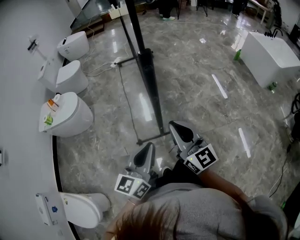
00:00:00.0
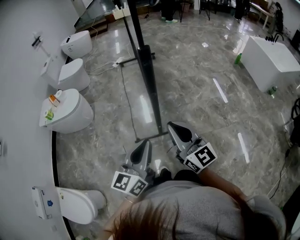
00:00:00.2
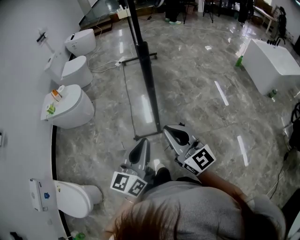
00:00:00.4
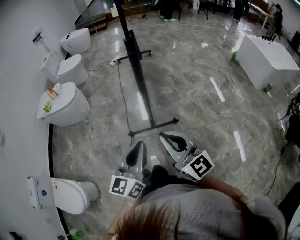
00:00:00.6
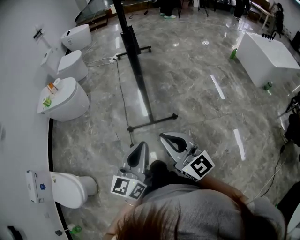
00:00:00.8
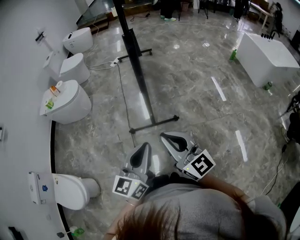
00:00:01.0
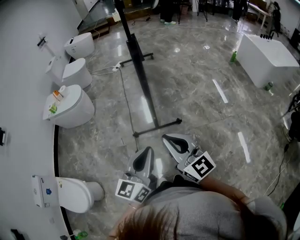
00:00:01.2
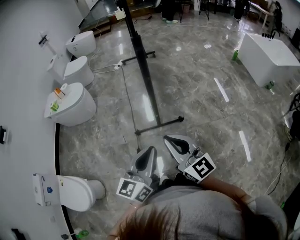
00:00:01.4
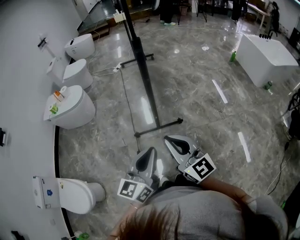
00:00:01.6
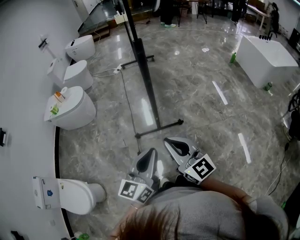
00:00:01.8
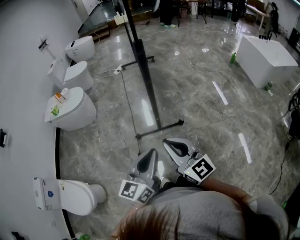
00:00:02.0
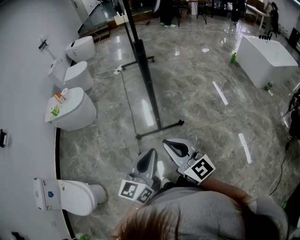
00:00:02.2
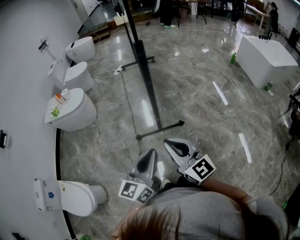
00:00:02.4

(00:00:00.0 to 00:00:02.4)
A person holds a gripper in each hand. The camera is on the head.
00:00:00.0 - 00:00:01.2: Both grippers move backward, about 20 cm.
00:00:01.2 - 00:00:02.4: There are only small adjustments of the grippers.

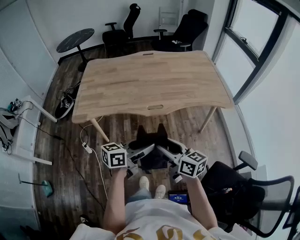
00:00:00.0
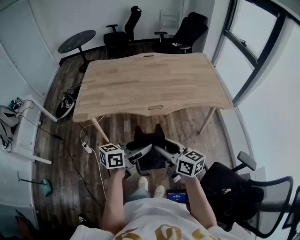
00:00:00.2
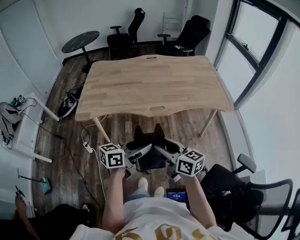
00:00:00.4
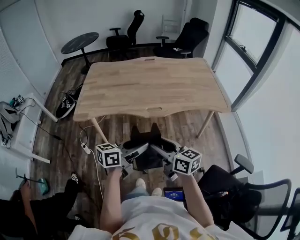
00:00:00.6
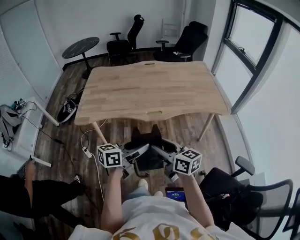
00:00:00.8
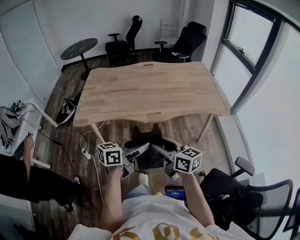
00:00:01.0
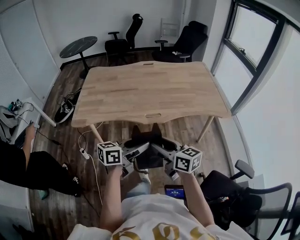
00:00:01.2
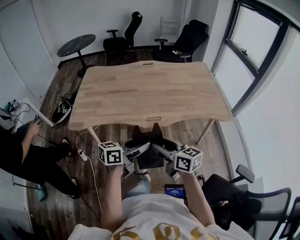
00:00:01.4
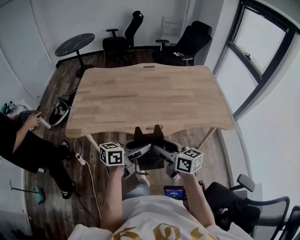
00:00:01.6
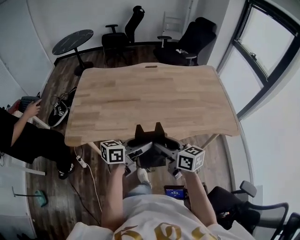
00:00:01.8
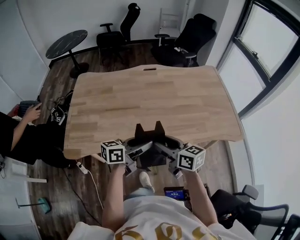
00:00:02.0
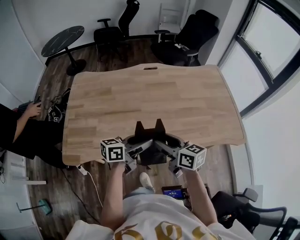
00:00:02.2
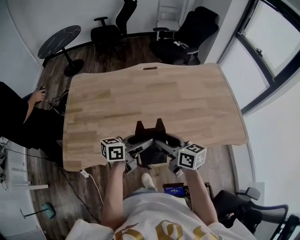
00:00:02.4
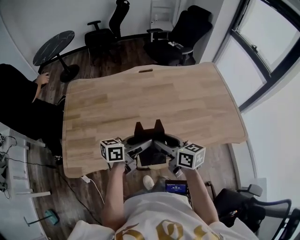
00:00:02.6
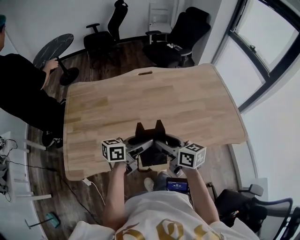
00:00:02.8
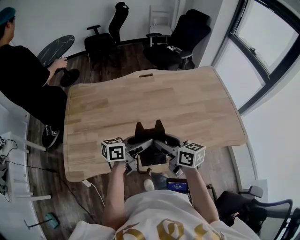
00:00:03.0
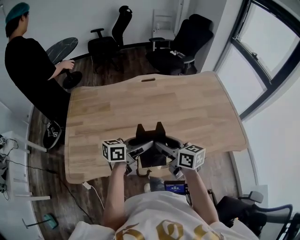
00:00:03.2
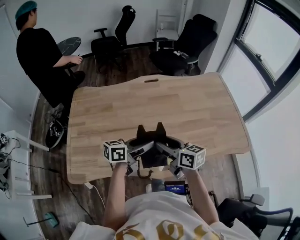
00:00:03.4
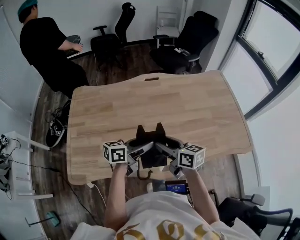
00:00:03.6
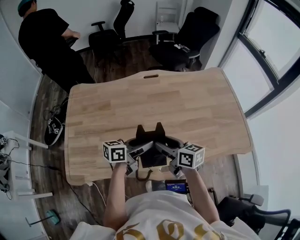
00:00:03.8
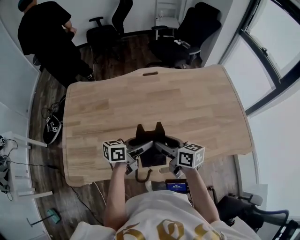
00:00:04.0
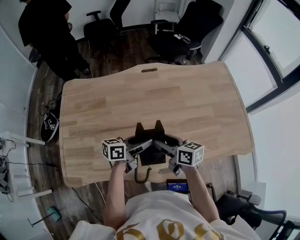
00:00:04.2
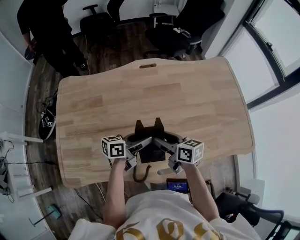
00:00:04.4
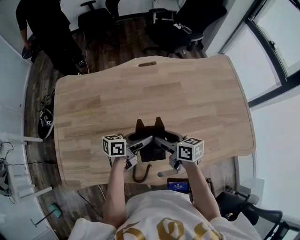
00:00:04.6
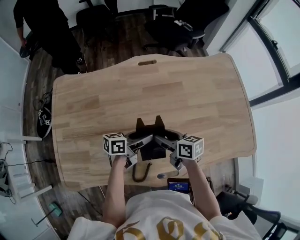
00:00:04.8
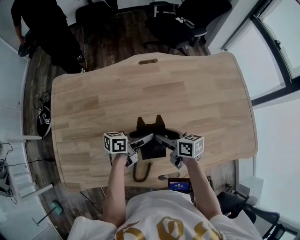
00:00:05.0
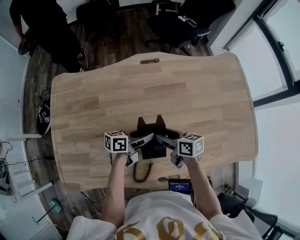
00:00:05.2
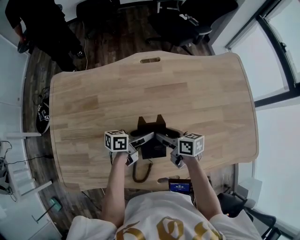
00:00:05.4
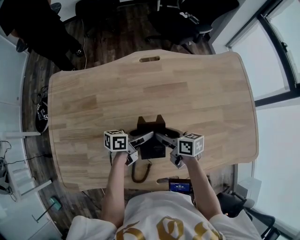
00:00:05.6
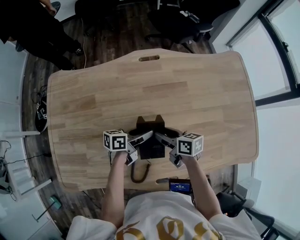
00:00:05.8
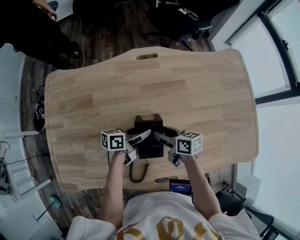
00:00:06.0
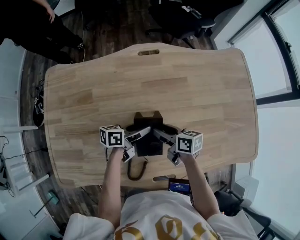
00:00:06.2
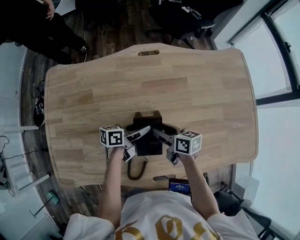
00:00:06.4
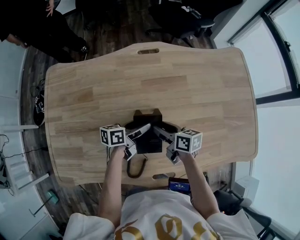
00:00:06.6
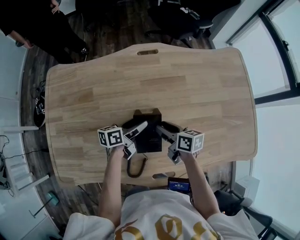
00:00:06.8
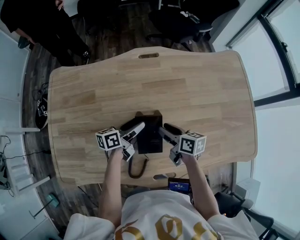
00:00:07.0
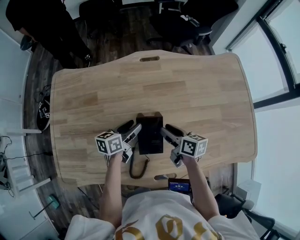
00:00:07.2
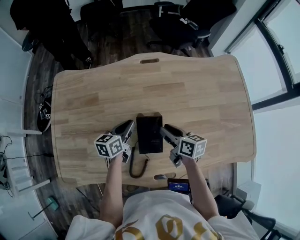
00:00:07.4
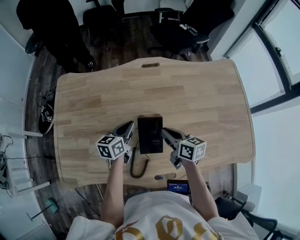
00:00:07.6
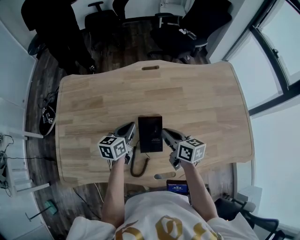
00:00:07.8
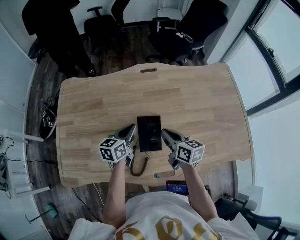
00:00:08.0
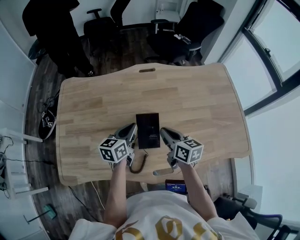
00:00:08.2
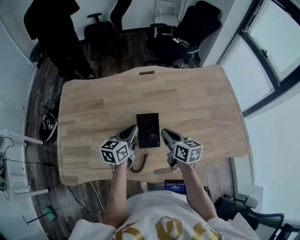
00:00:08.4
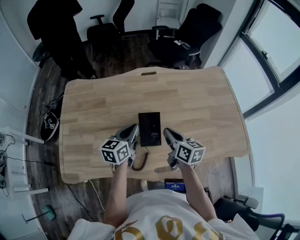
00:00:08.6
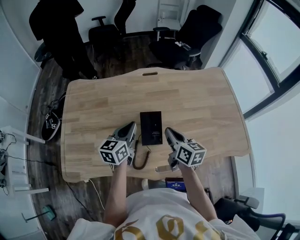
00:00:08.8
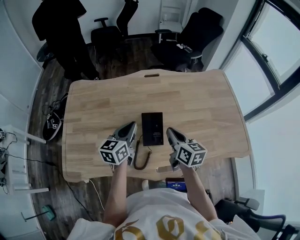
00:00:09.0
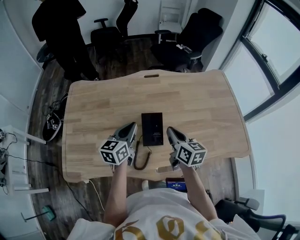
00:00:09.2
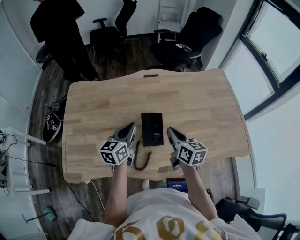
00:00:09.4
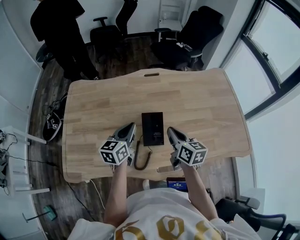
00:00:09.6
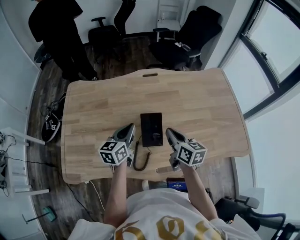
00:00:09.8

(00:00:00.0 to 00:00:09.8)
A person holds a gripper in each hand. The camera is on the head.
00:00:00.0 - 00:00:01.4: Both grippers move forward, roughly 5 cm.
00:00:01.4 - 00:00:02.8: The grippers both shift forward by some 35 cm.
00:00:02.8 - 00:00:04.2: The grippers both shift forward and downward by roughly 10 cm.
00:00:04.2 - 00:00:05.6: The right gripper heads downward and forward, covering roughly 15 cm. Meanwhile the left gripper heads forward and downward, covering roughly 15 cm.
00:00:05.6 - 00:00:07.0: The grippers make only small movements.
00:00:07.0 - 00:00:08.4: Both grippers travel together upward and backward, roughly 15 cm. The right gripper closes, while the left gripper turns by about 30 degrees, and closes up.
00:00:08.4 - 00:00:09.8: The grippers move only a little.

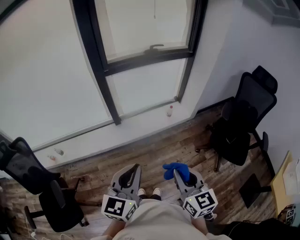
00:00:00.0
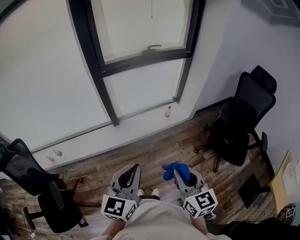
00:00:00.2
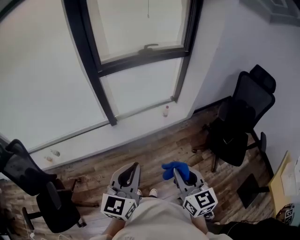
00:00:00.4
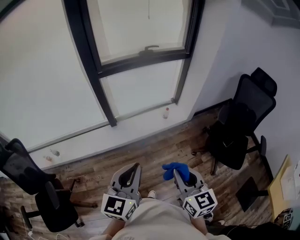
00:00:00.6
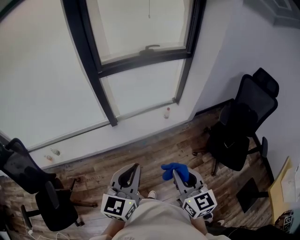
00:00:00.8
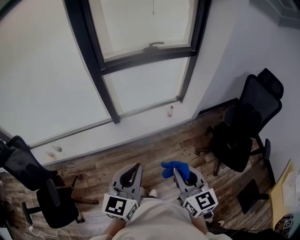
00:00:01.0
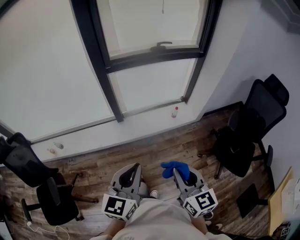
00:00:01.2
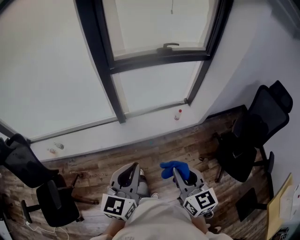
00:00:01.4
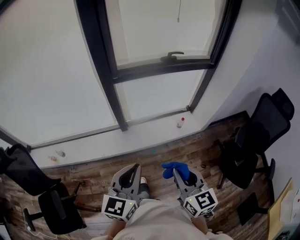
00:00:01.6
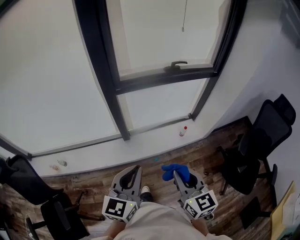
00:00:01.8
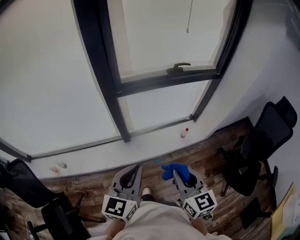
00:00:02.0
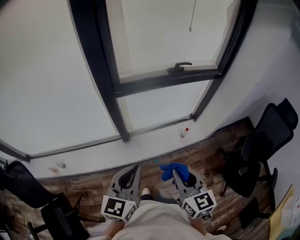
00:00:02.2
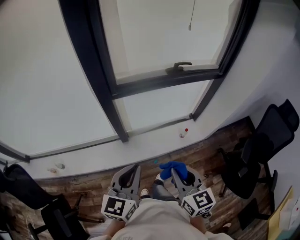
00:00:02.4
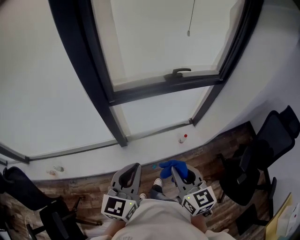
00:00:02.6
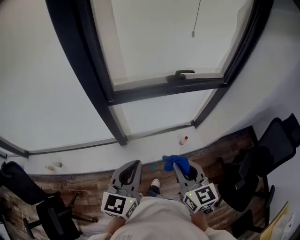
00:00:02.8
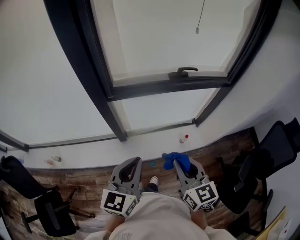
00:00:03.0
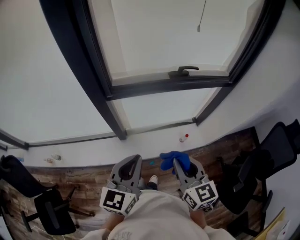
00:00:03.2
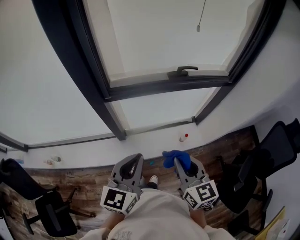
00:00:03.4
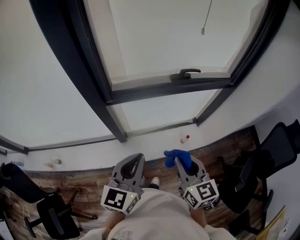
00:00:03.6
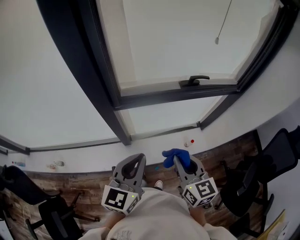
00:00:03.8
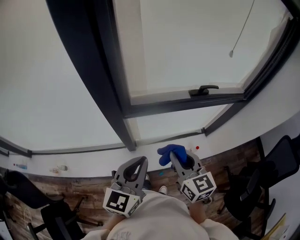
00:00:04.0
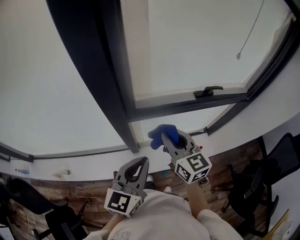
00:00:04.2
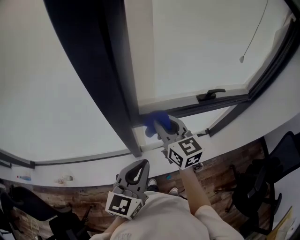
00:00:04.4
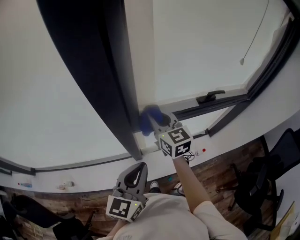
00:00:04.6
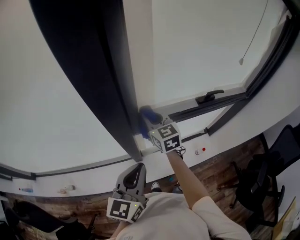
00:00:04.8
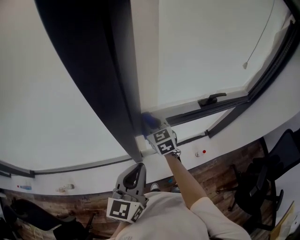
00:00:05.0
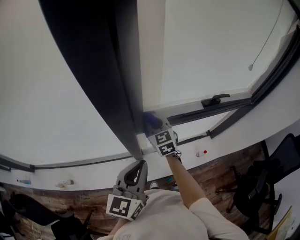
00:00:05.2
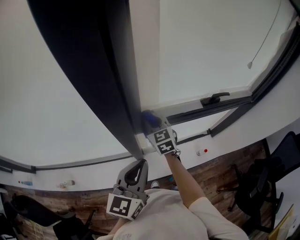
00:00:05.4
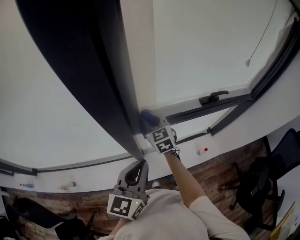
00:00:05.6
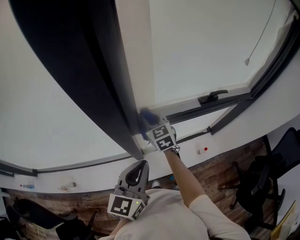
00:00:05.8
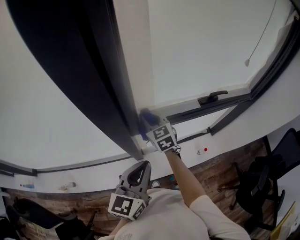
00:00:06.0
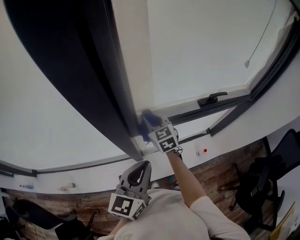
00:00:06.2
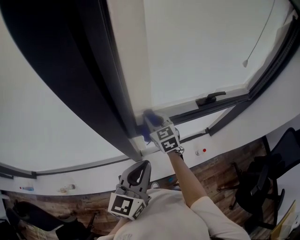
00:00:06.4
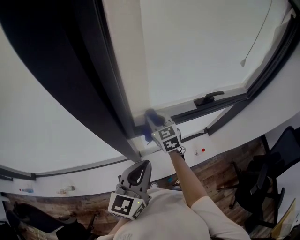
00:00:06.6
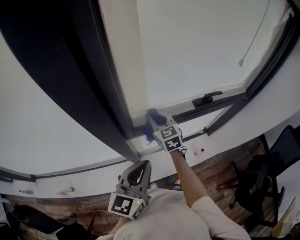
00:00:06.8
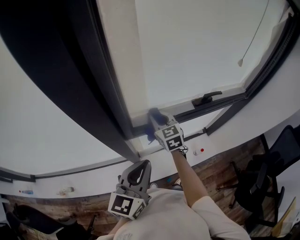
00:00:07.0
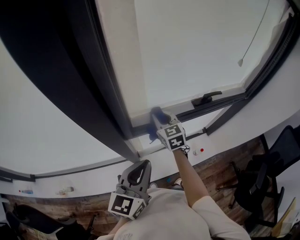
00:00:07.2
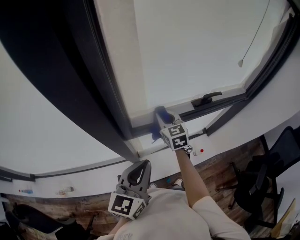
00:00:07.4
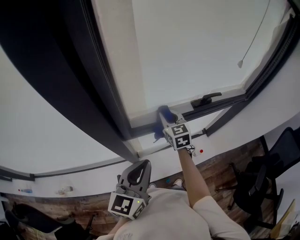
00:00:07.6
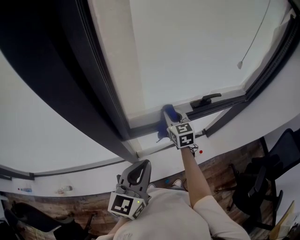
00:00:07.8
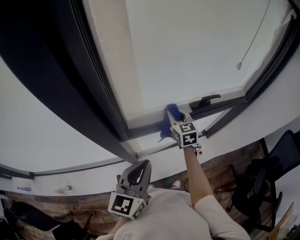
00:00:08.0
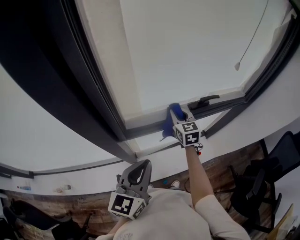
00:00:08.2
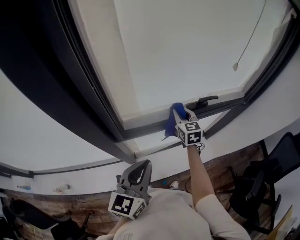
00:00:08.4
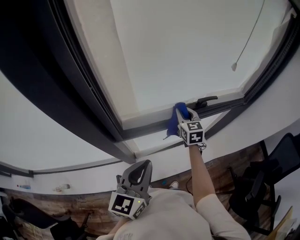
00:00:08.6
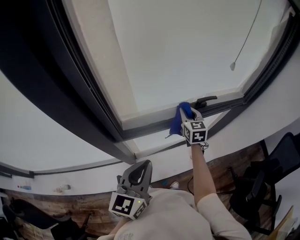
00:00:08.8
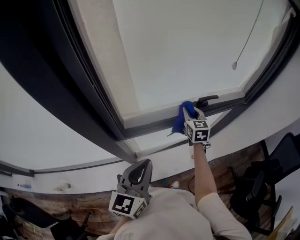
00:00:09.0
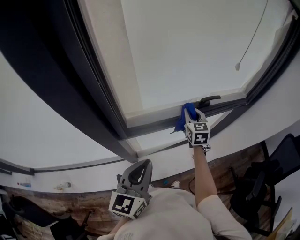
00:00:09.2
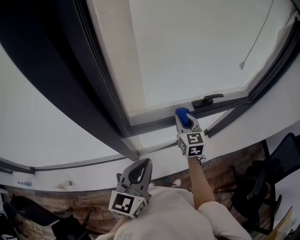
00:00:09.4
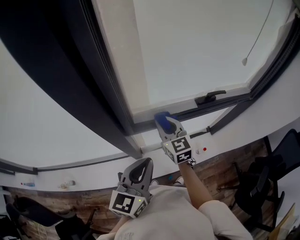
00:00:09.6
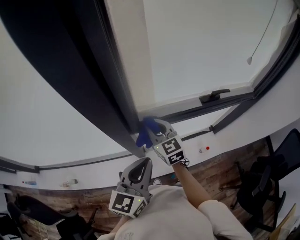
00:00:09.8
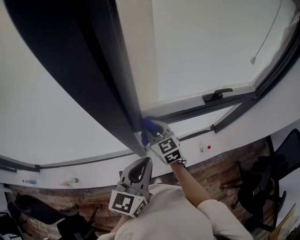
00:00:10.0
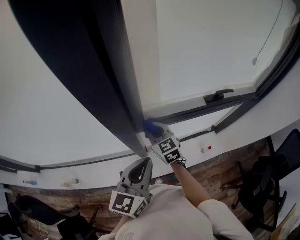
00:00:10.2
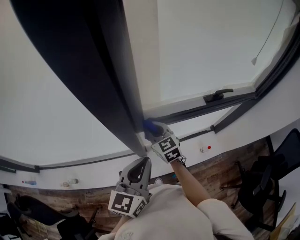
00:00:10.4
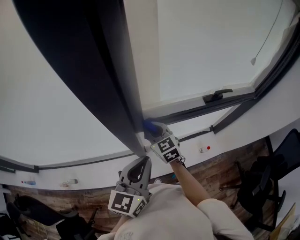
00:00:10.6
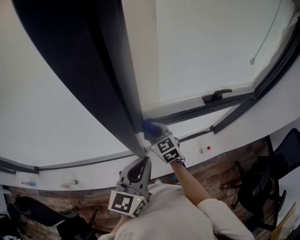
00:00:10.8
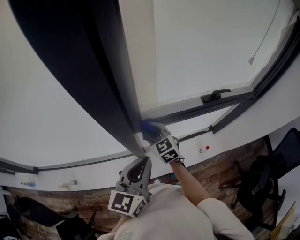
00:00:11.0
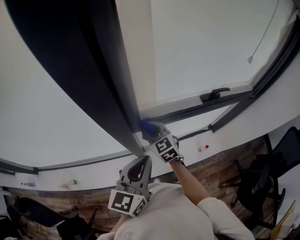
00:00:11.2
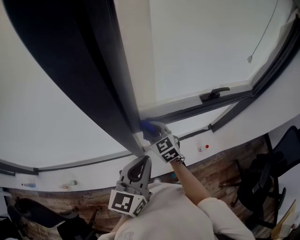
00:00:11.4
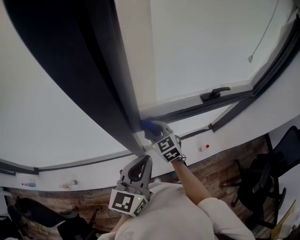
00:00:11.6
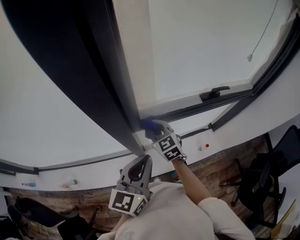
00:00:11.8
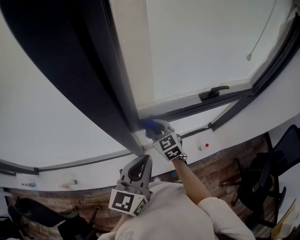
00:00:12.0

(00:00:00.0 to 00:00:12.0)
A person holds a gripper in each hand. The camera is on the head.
00:00:00.0 - 00:00:01.6: The grippers both shift forward by some 20 cm.
00:00:01.6 - 00:00:03.0: Both grippers move forward, about 25 cm.
00:00:03.0 - 00:00:04.4: The right gripper is displaced forward and to the left by about 35 cm. The left gripper heads forward and to the left, covering about 20 cm.
00:00:04.4 - 00:00:06.0: The right gripper travels downward and forward by about 15 cm.
00:00:06.0 - 00:00:07.6: The right gripper moves to the right, roughly 10 cm.
00:00:07.6 - 00:00:09.0: The right gripper moves to the right, about 15 cm.
00:00:09.0 - 00:00:10.4: The right gripper shifts about 30 cm to the left, and swivels some 30 degrees. Meanwhile the left gripper moves to the left, roughly 10 cm.
00:00:10.4 - 00:00:12.0: The grippers make only small movements.
